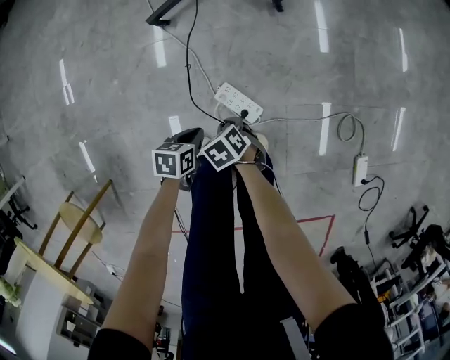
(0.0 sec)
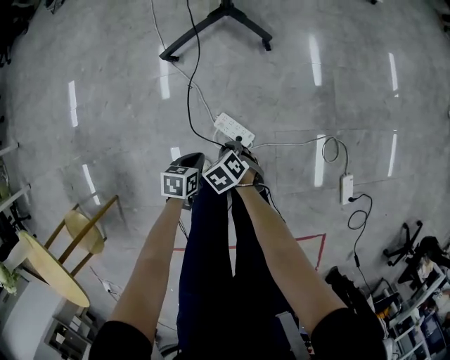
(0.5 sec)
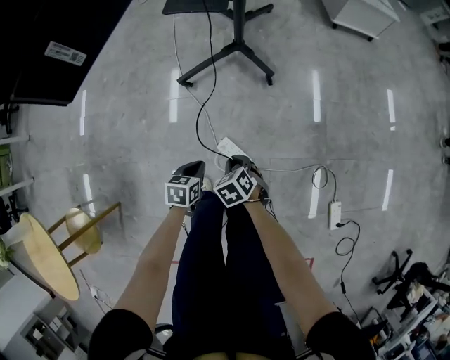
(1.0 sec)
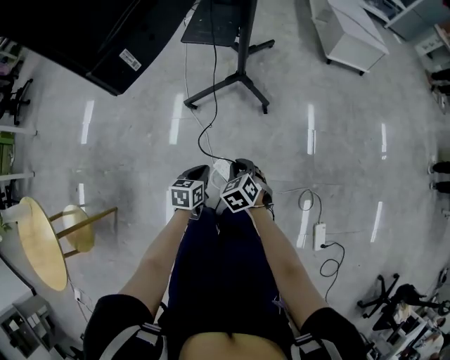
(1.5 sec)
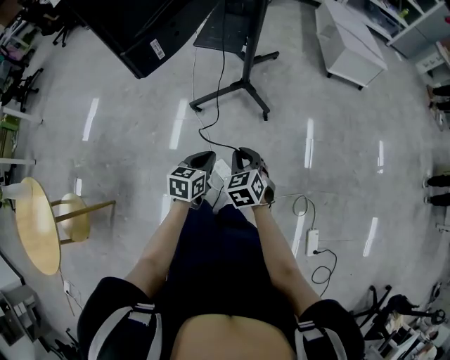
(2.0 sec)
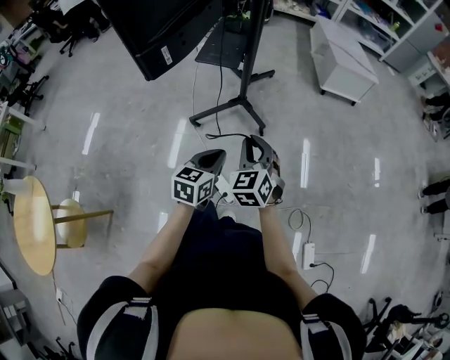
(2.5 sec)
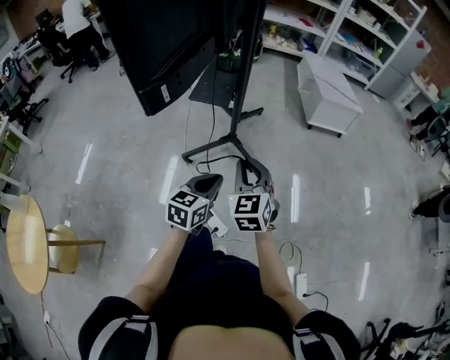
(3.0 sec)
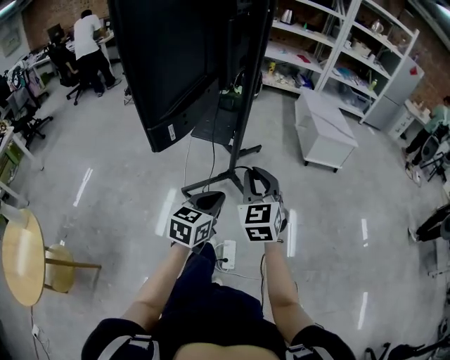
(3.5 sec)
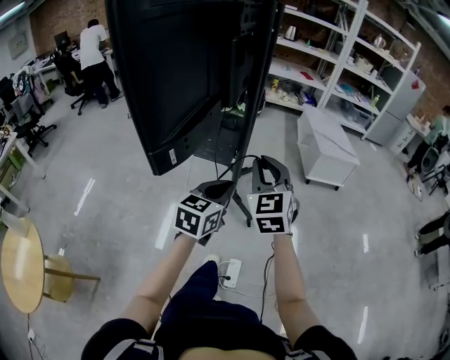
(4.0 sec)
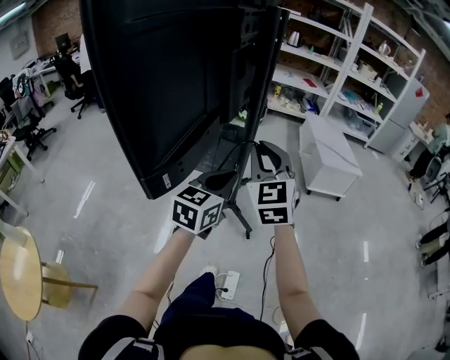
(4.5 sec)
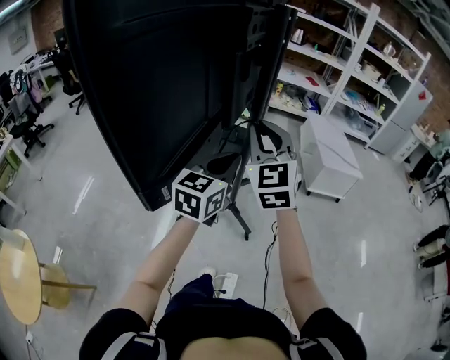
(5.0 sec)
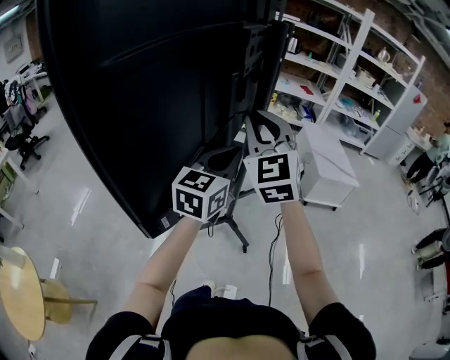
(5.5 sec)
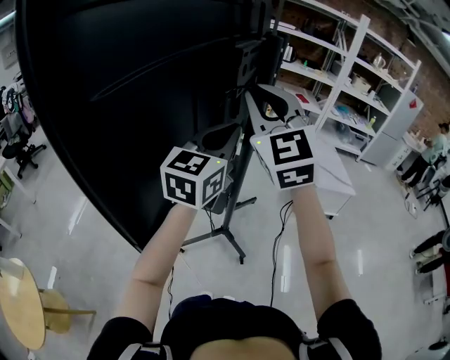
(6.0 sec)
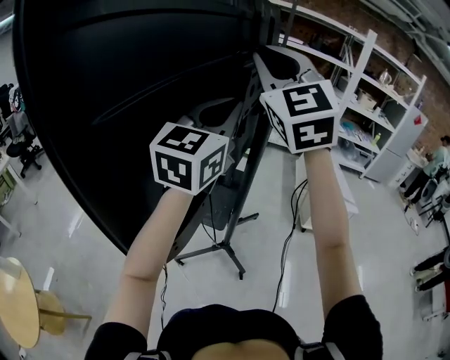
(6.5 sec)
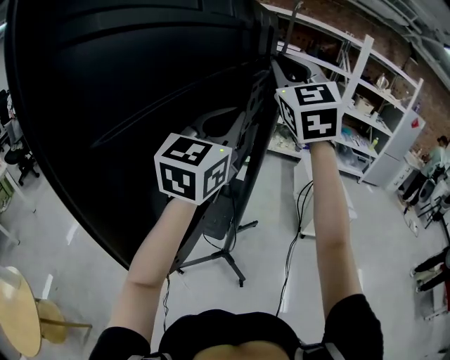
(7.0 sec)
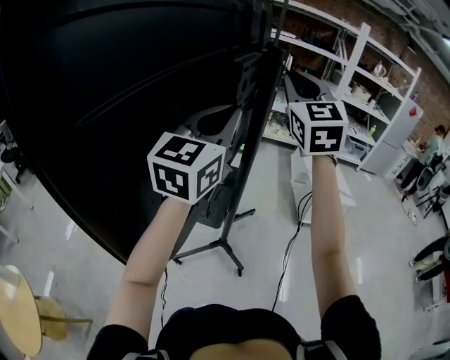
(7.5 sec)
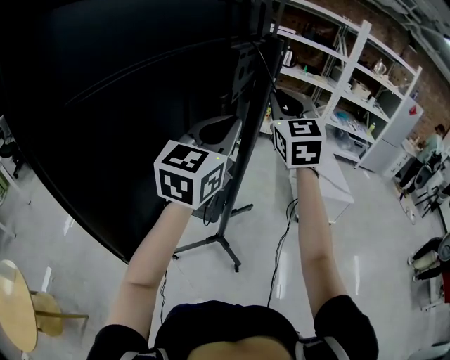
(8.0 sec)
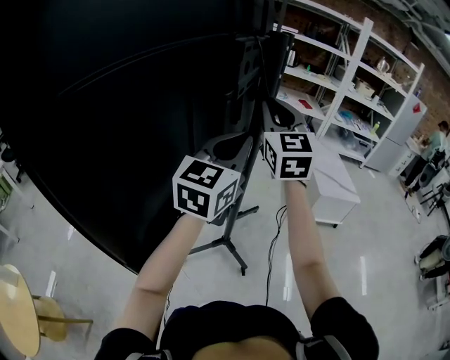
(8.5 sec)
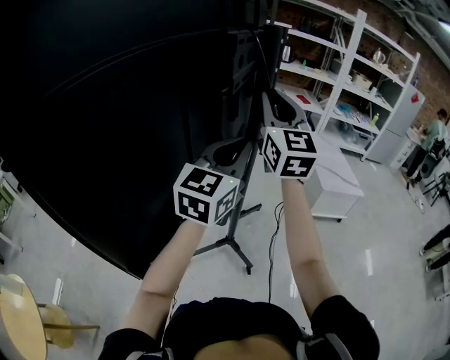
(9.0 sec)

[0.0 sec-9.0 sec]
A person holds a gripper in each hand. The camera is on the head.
0.0 sec to 2.0 sec: The two grippers go roughly 40 cm upward. The left gripper turns by roughly 30 degrees; the right gripper tips its fingers upward by approximately 30 degrees.
2.0 sec to 4.5 sec: Both grippers move upward and forward, approximately 40 cm. The right gripper points its fingers roughly 40 degrees further upward; the left gripper rotates roughly 30 degrees.
4.5 sec to 7.0 sec: The two grippers go about 40 cm upward and forward. The left gripper turns by roughly 30 degrees.
7.0 sec to 9.0 sec: The left gripper moves downward and to the right, some 15 cm. The right gripper travels downward by roughly 15 cm, and rotates roughly 30 degrees.

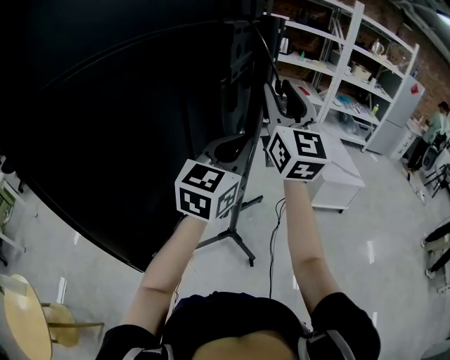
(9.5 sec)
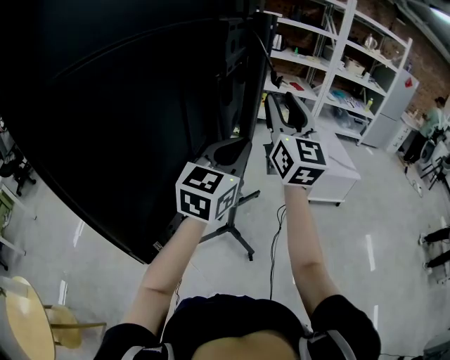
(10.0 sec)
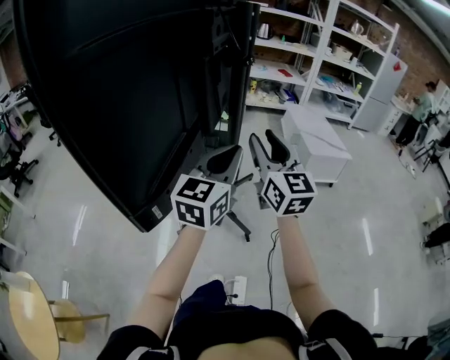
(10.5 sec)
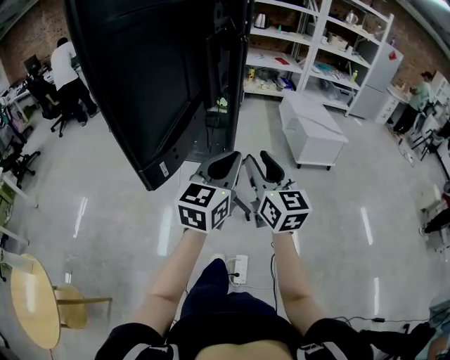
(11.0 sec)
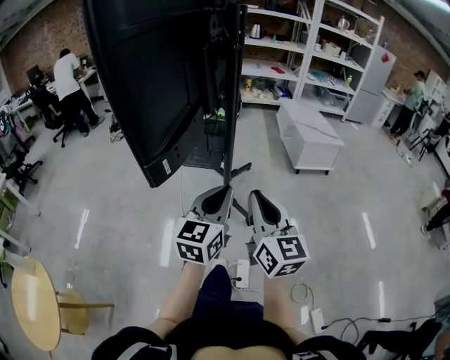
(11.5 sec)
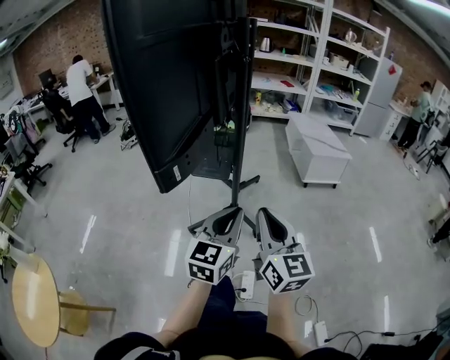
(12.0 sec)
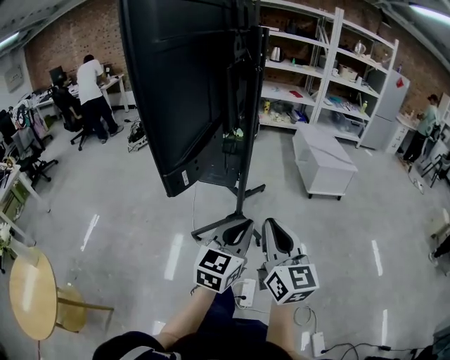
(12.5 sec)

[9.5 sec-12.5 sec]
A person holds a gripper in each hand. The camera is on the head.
9.5 sec to 11.0 sec: The grippers both shift backward and downward by approximately 30 cm. The right gripper rotates about 30 degrees.
11.0 sec to 12.5 sec: The right gripper shifts approximately 15 cm backward, and closes its fingers. The left gripper goes approximately 15 cm backward and downward.

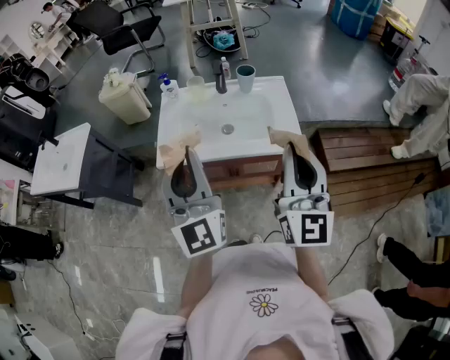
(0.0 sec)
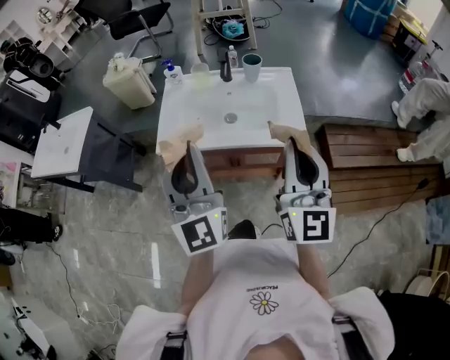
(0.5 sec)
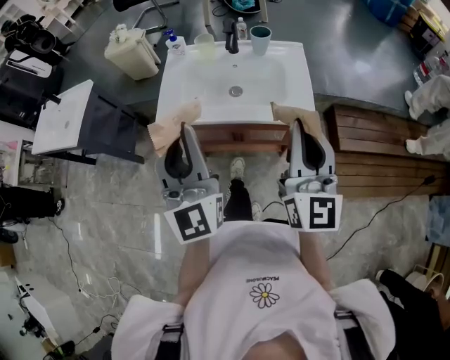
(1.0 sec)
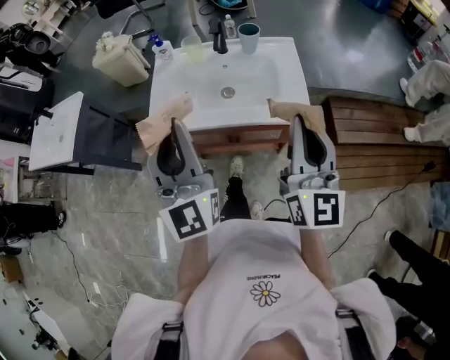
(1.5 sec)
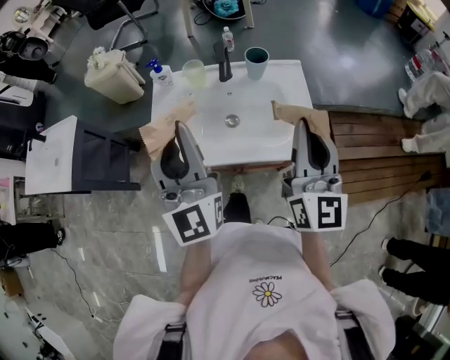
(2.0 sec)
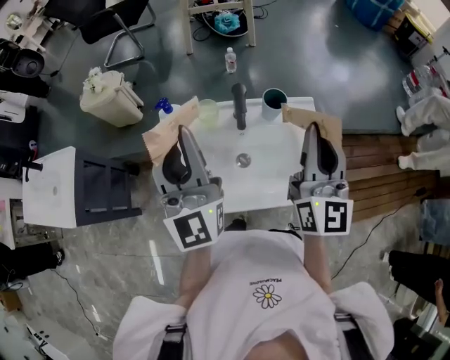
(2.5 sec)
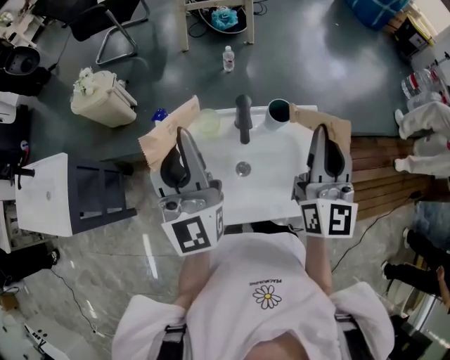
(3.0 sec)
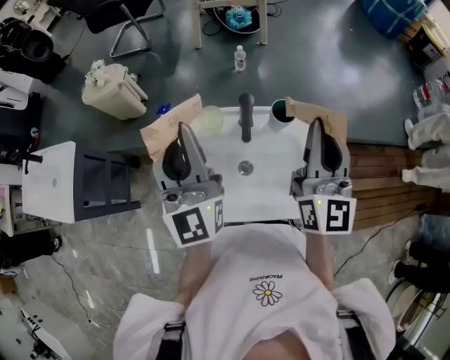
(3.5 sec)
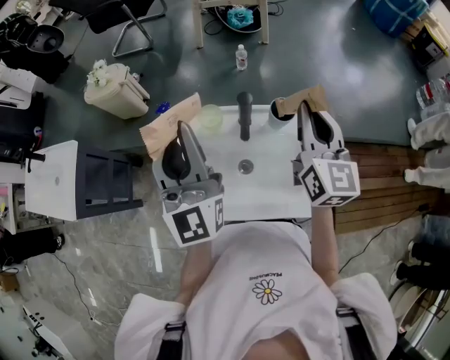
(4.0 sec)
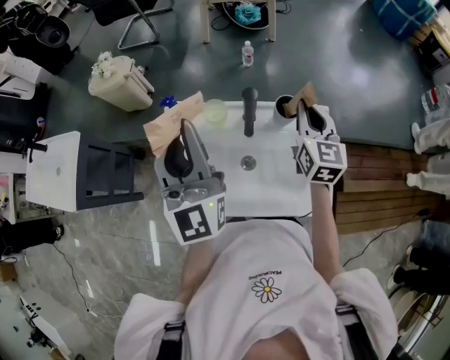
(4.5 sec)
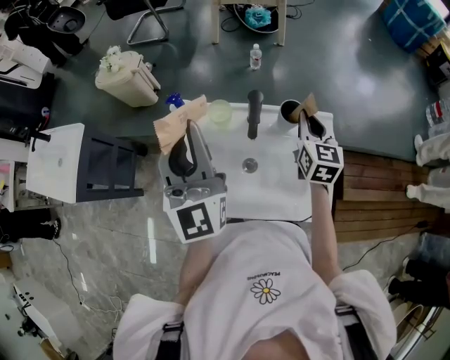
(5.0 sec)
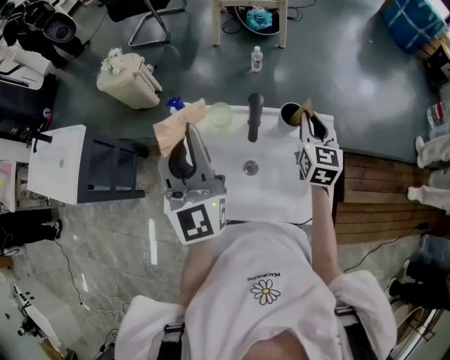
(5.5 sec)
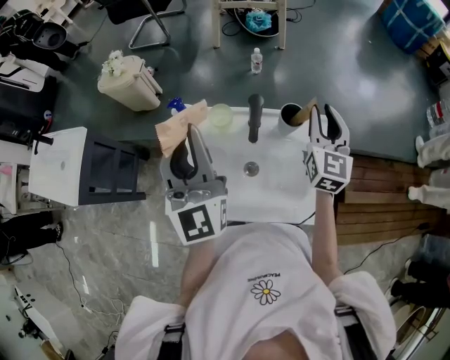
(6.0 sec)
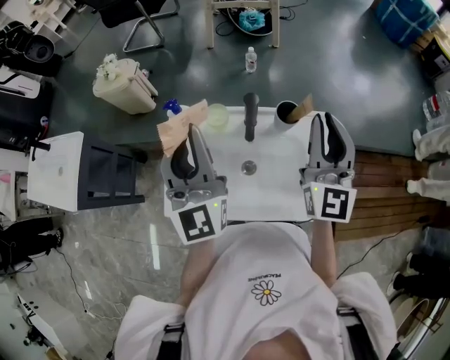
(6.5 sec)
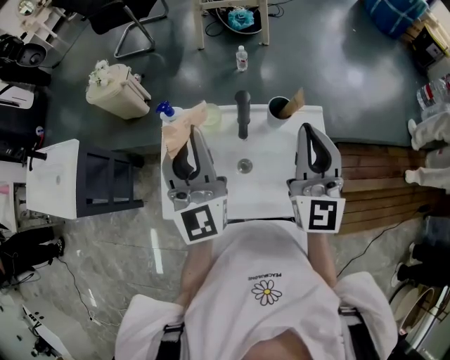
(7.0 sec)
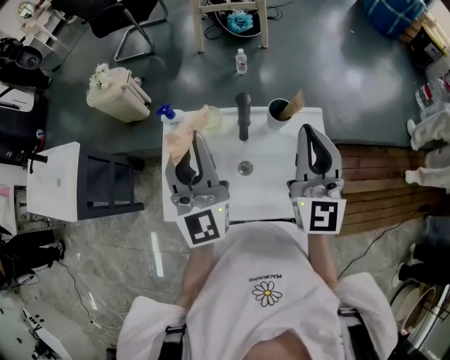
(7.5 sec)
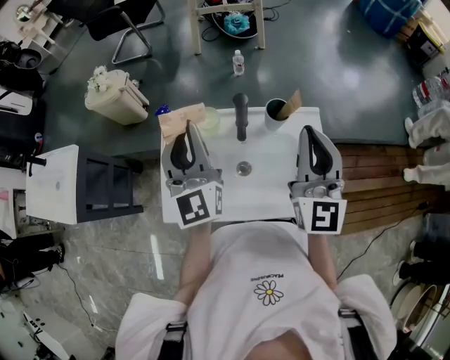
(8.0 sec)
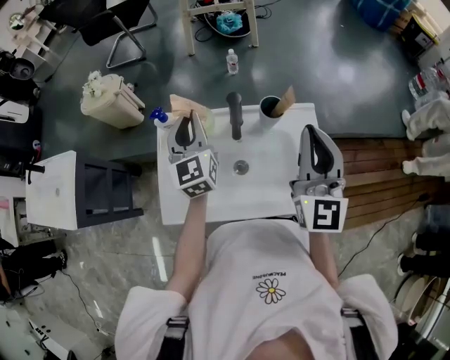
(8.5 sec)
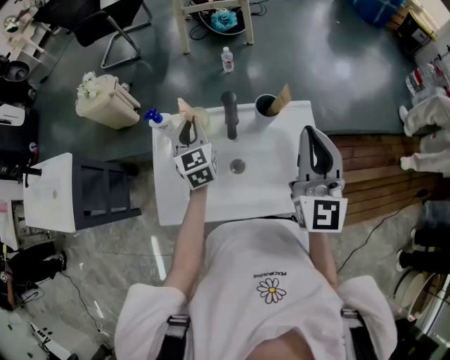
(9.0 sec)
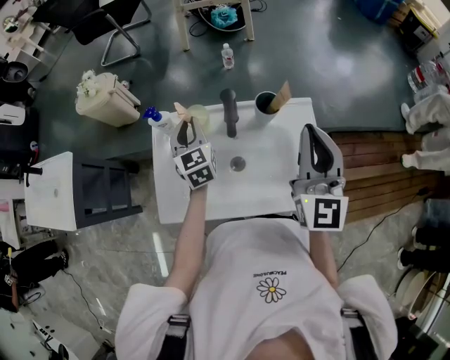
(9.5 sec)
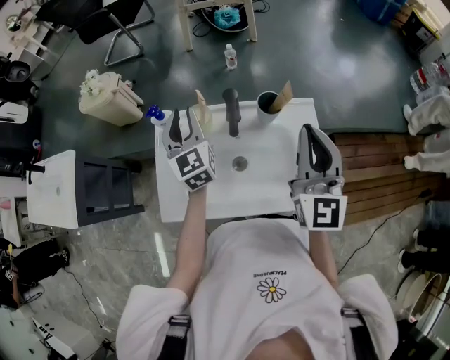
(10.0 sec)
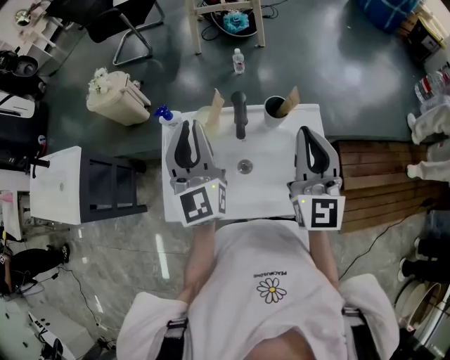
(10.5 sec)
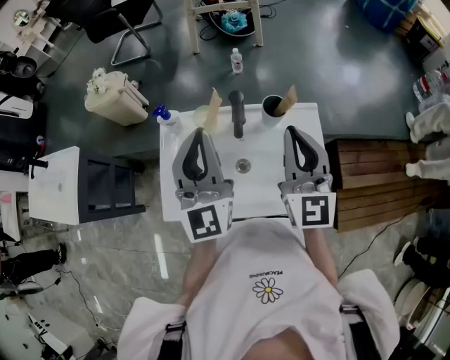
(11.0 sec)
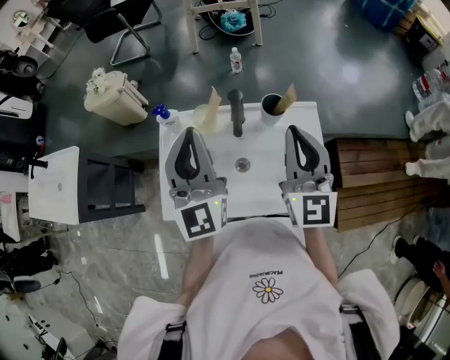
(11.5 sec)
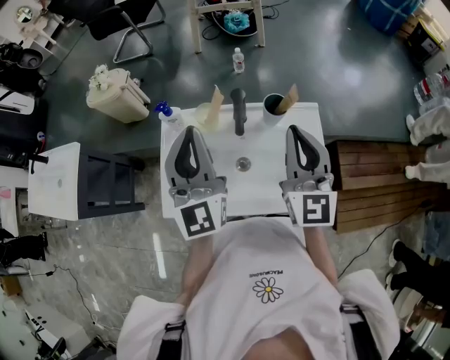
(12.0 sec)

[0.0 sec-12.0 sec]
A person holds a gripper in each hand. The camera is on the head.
0.0 sec to 2.0 sec: The two grippers go about 15 cm forward.
2.0 sec to 4.0 sec: Both grippers travel together forward, roughly 25 cm.
4.0 sec to 6.0 sec: The right gripper heads downward, covering roughly 5 cm.
6.0 sec to 8.0 sec: The right gripper goes about 15 cm backward, upward and to the left.
8.0 sec to 10.0 sec: The left gripper moves downward and forward, roughly 15 cm.
10.0 sec to 12.0 sec: The left gripper moves backward and upward, about 15 cm, and turns by roughly 20 degrees.

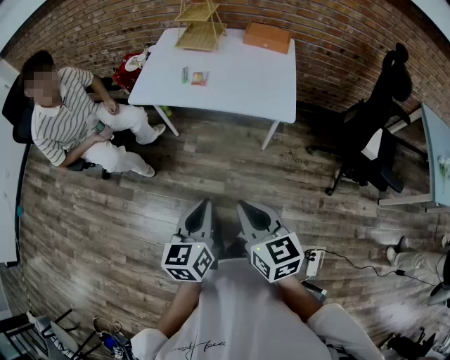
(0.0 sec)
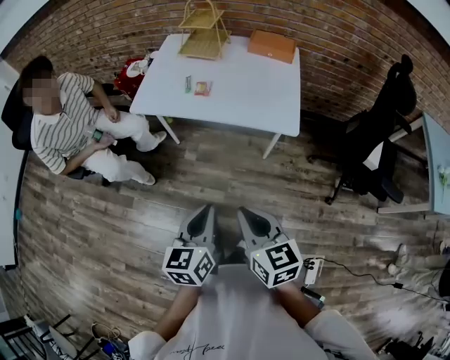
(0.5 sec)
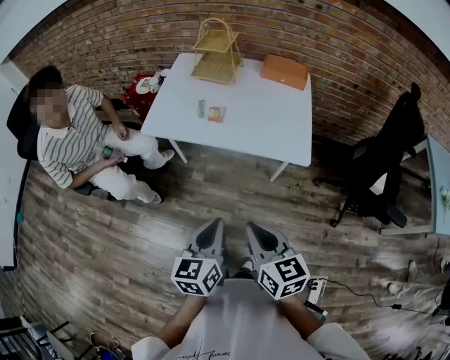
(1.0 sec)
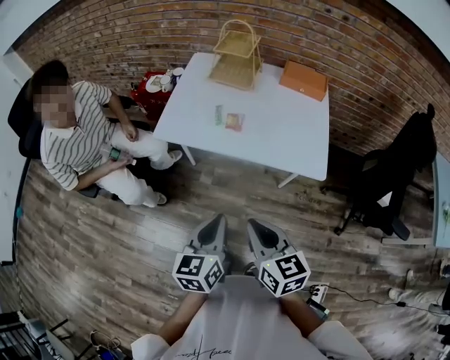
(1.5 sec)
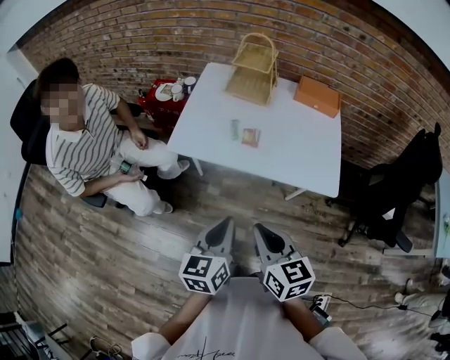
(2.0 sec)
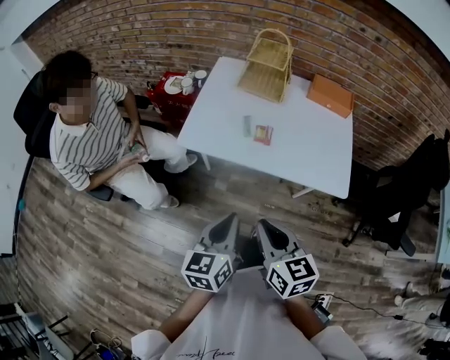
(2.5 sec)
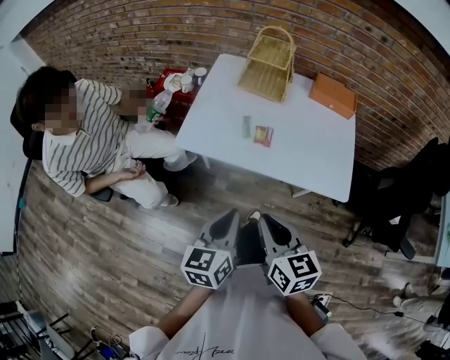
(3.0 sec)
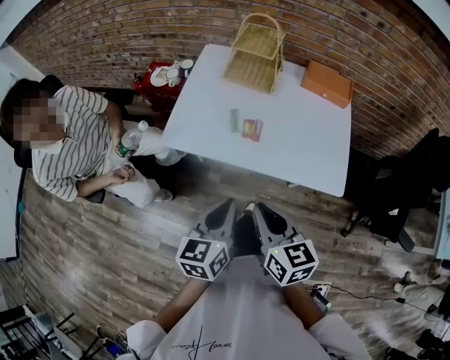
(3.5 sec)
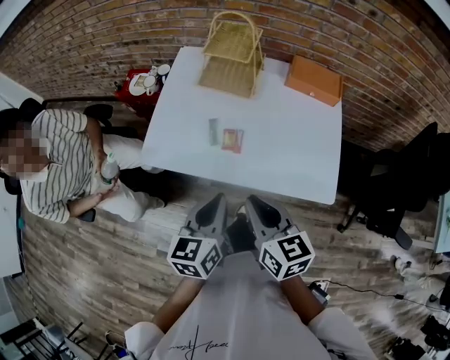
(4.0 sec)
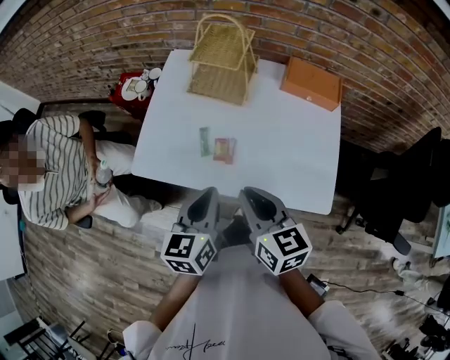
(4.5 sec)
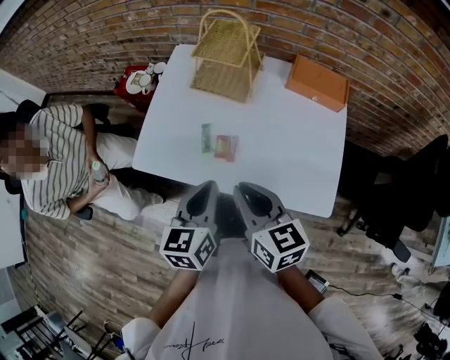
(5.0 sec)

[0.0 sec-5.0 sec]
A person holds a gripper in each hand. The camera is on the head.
0.0 sec to 2.5 sec: Both grippers move forward and to the left, approximately 25 cm.
2.5 sec to 5.0 sec: The left gripper goes approximately 20 cm forward and to the right, while the right gripper heads forward, covering approximately 20 cm.
